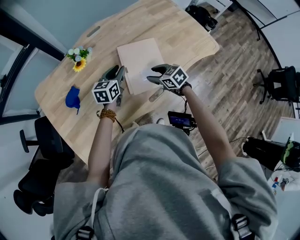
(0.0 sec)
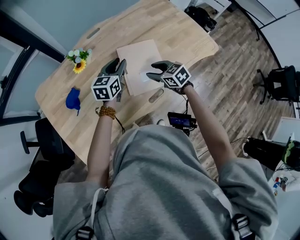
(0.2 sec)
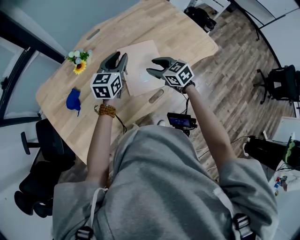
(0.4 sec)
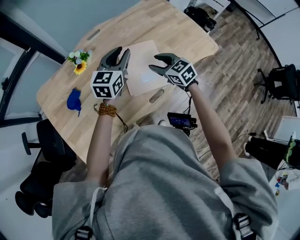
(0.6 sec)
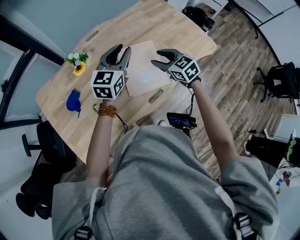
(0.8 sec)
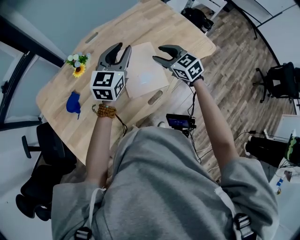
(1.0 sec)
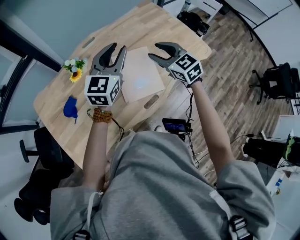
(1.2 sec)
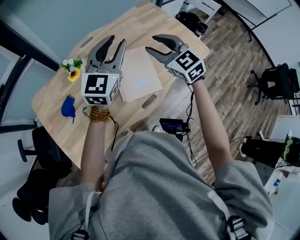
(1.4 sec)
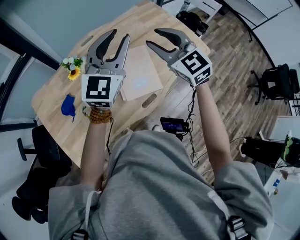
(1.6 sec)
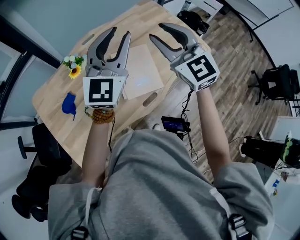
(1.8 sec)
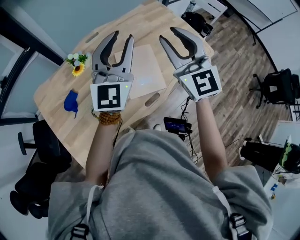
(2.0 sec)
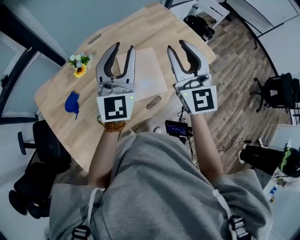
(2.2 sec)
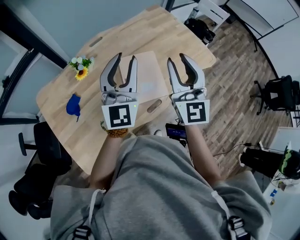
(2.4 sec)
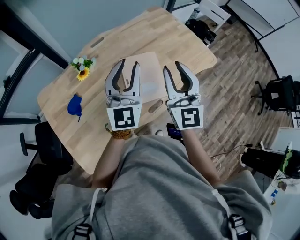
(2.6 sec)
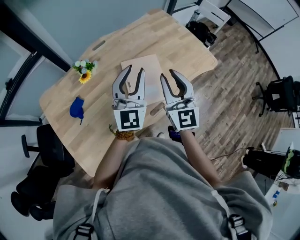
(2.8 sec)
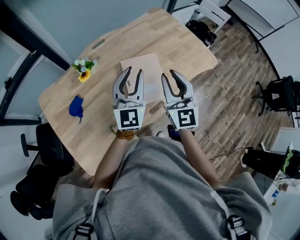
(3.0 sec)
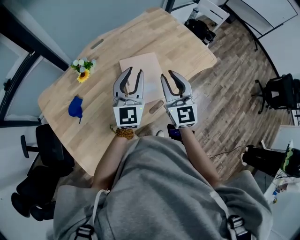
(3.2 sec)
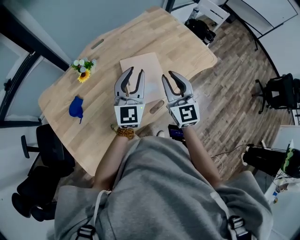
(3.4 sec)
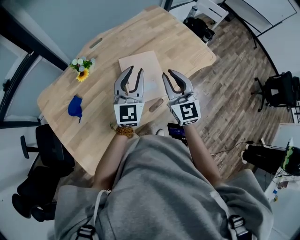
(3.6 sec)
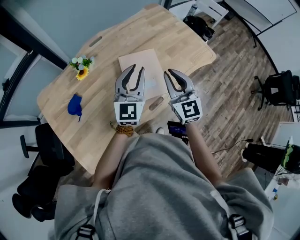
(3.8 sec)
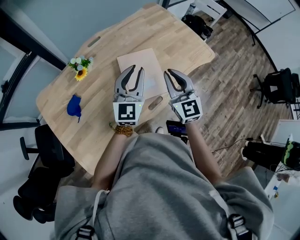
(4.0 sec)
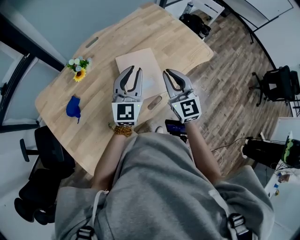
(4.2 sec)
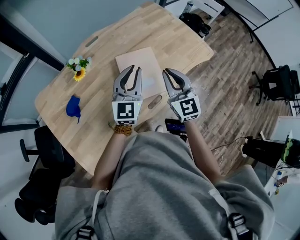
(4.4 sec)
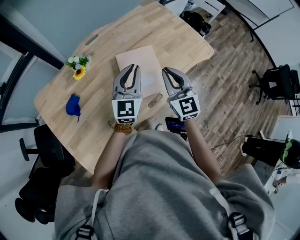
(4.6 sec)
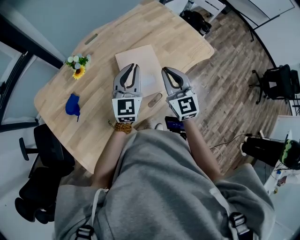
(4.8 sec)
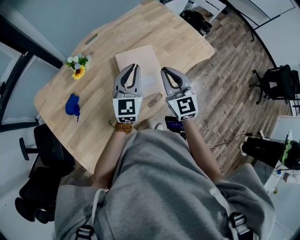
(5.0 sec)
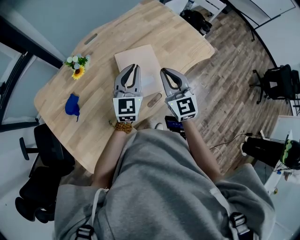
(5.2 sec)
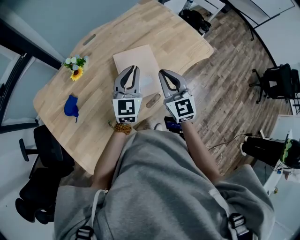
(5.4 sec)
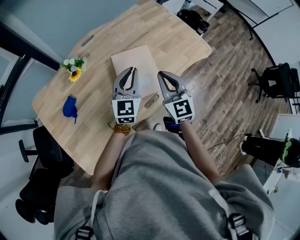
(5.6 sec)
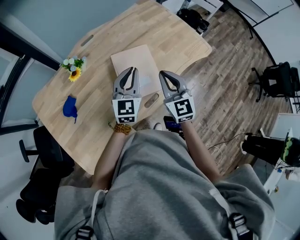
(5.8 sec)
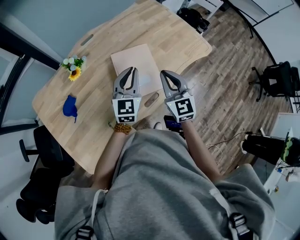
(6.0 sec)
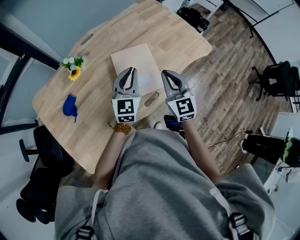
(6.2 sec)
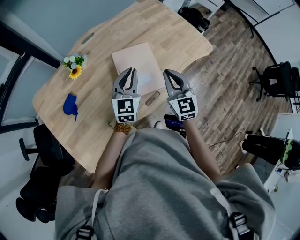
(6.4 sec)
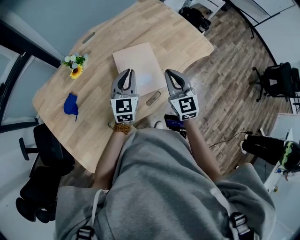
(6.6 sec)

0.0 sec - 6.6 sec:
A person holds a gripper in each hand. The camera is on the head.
0.0 sec - 1.6 sec: Both grippers travel together upward, roughly 30 cm. The left gripper points its fingers roughly 30 degrees further upward. The right gripper points its fingers about 30 degrees further upward.
1.6 sec - 3.2 sec: The left gripper travels downward by roughly 10 cm. The right gripper heads backward and downward, covering roughly 10 cm, and swivels some 30 degrees.
3.2 sec - 5.0 sec: The right gripper closes.
5.0 sec - 6.6 sec: The left gripper moves downward, about 5 cm.

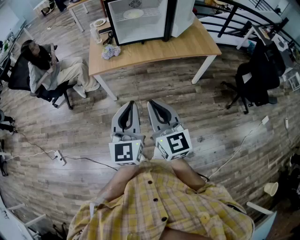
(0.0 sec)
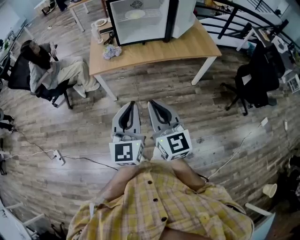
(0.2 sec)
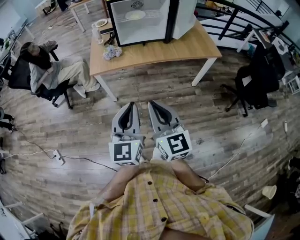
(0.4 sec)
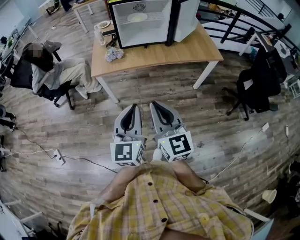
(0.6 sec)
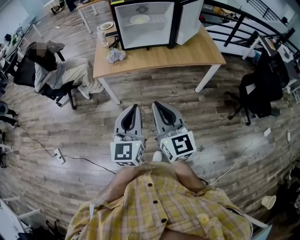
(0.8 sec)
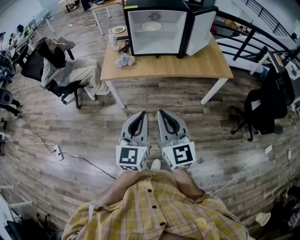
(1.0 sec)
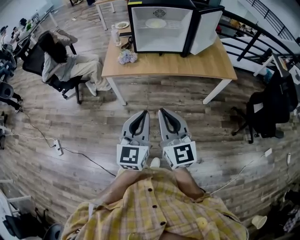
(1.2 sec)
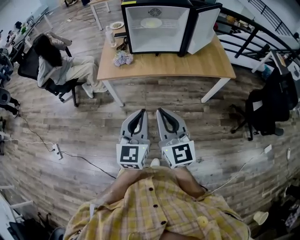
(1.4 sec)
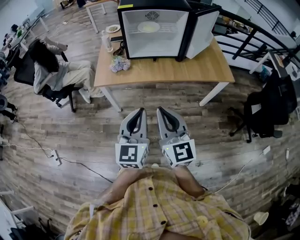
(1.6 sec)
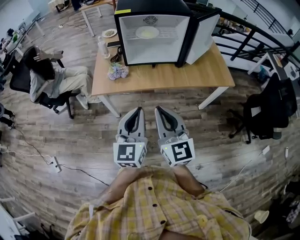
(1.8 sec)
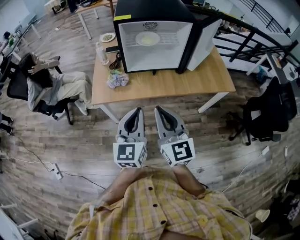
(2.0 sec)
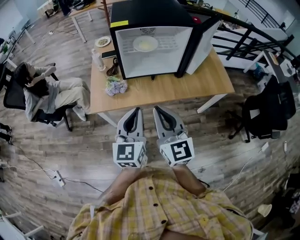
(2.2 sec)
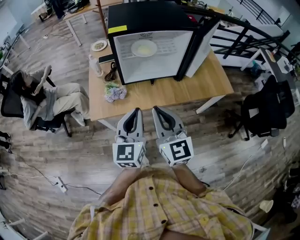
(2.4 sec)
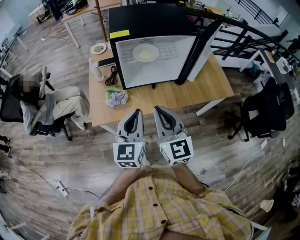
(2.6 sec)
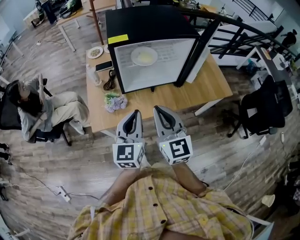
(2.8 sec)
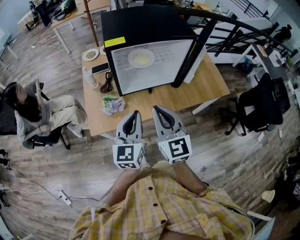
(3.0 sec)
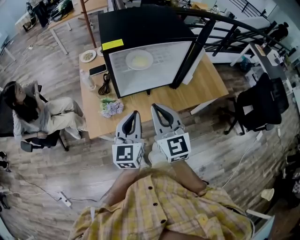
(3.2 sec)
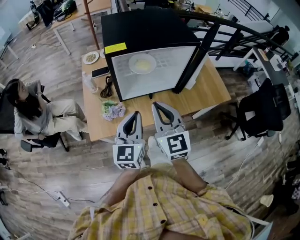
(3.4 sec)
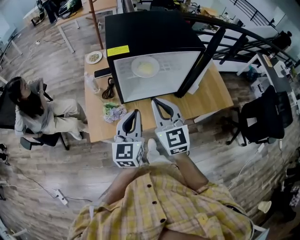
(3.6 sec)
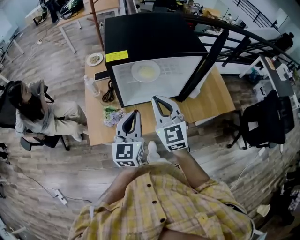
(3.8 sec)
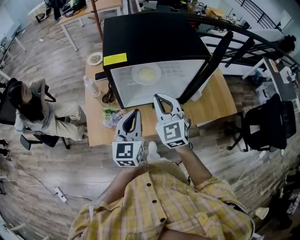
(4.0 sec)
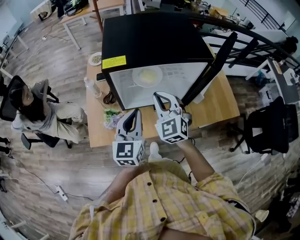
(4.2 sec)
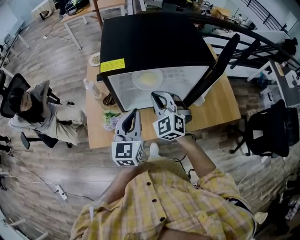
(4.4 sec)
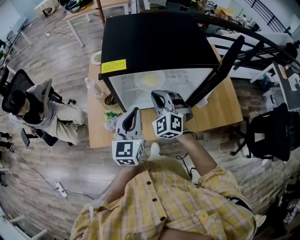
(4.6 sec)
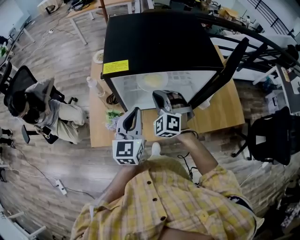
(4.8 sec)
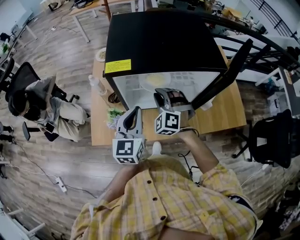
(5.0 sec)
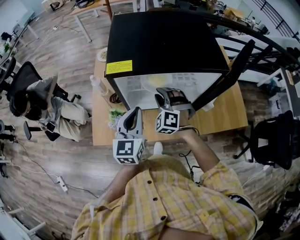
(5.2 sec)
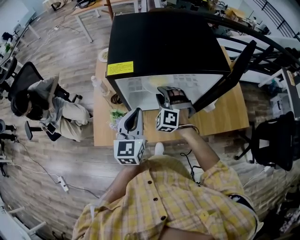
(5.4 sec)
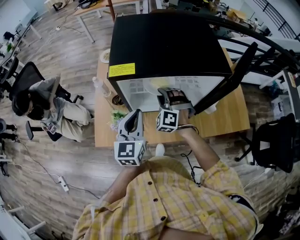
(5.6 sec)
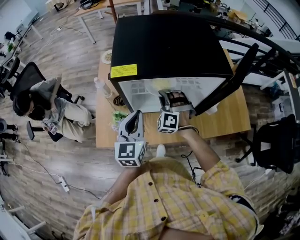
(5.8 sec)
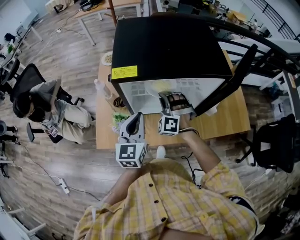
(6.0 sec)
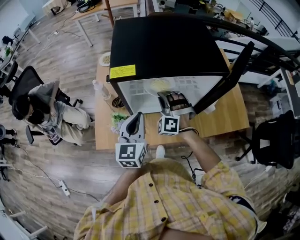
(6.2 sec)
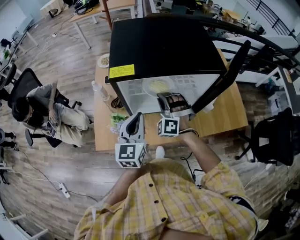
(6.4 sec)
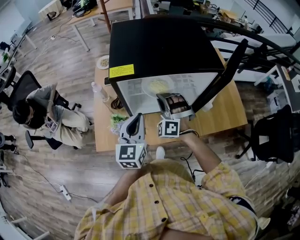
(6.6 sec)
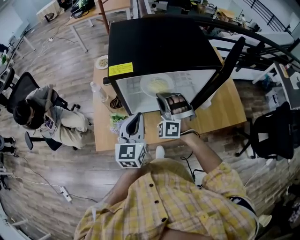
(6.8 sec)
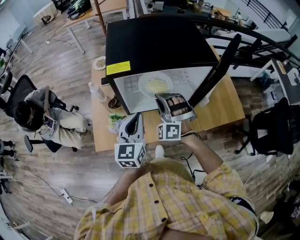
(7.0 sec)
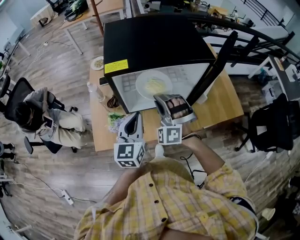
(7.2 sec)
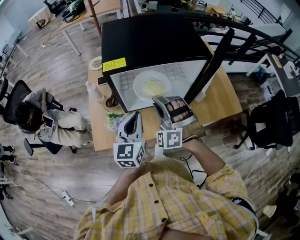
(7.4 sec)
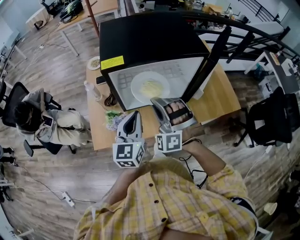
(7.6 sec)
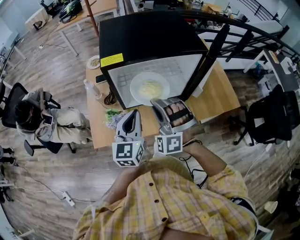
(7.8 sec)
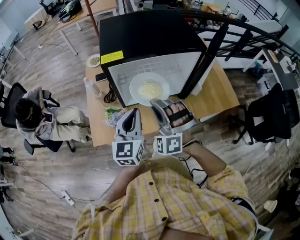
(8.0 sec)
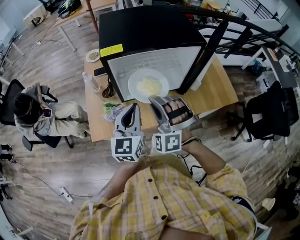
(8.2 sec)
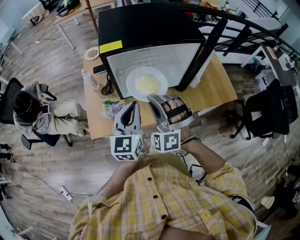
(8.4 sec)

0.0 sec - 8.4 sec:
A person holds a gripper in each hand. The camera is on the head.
0.0 sec - 1.4 sec: The grippers both shift forward by some 5 cm.
1.4 sec - 2.8 sec: Both grippers travel together forward, roughly 30 cm.
2.8 sec - 4.2 sec: Both grippers move forward, roughly 15 cm. The right gripper turns by some 30 degrees.
4.2 sec - 5.6 sec: The right gripper moves downward and forward, roughly 15 cm, turns by about 40 degrees, and opens. Meanwhile the left gripper changes place by roughly 5 cm.
5.6 sec - 7.0 sec: The right gripper shifts about 10 cm upward and backward.
7.0 sec - 8.4 sec: The left gripper travels backward by about 5 cm. Meanwhile the right gripper shifts about 15 cm backward and upward.

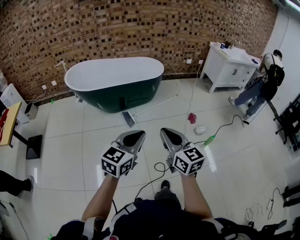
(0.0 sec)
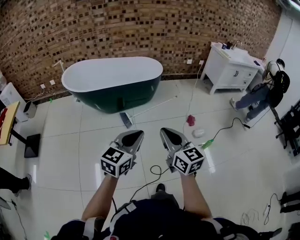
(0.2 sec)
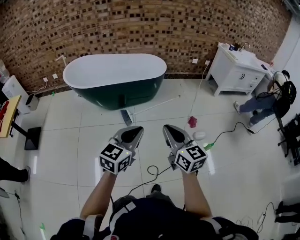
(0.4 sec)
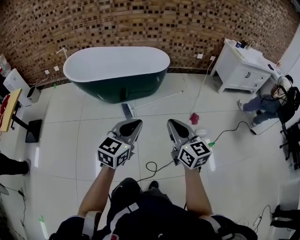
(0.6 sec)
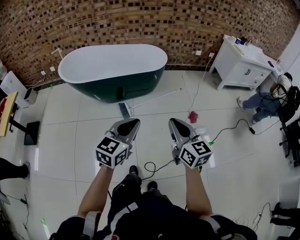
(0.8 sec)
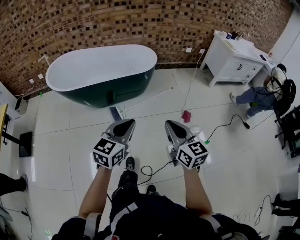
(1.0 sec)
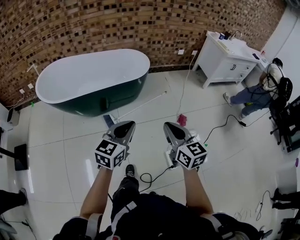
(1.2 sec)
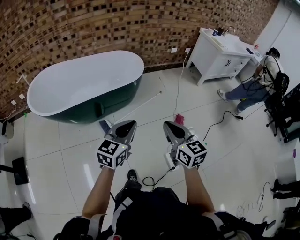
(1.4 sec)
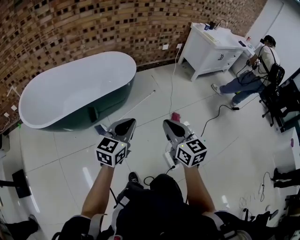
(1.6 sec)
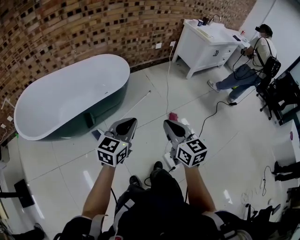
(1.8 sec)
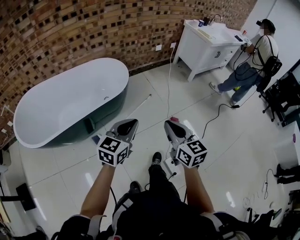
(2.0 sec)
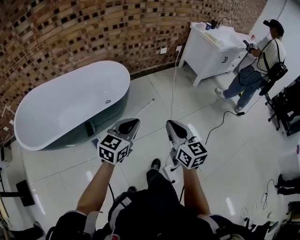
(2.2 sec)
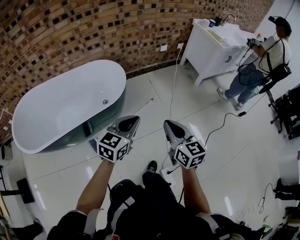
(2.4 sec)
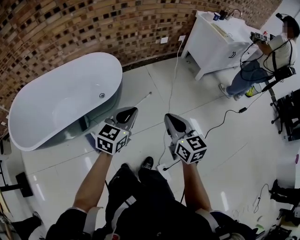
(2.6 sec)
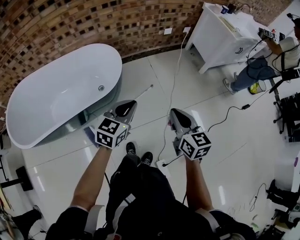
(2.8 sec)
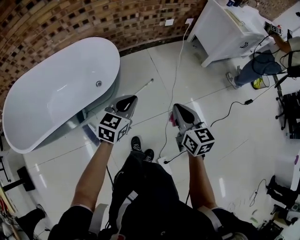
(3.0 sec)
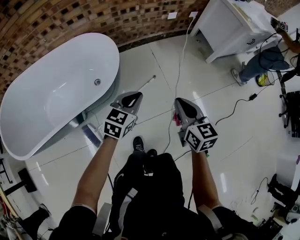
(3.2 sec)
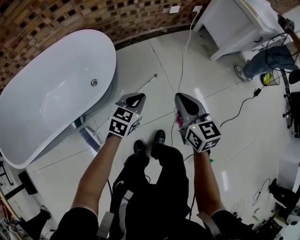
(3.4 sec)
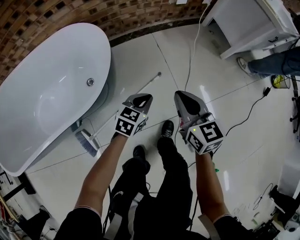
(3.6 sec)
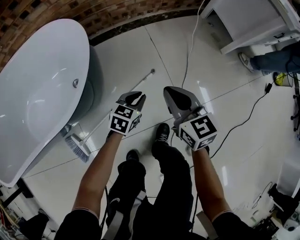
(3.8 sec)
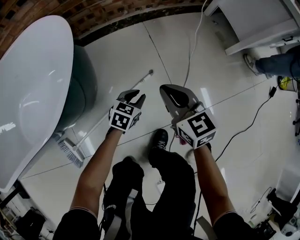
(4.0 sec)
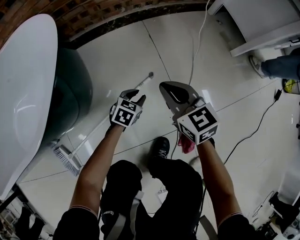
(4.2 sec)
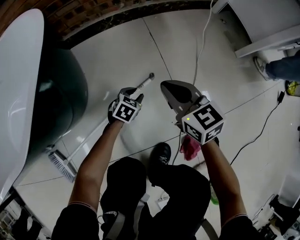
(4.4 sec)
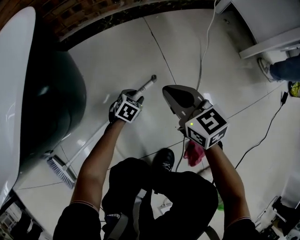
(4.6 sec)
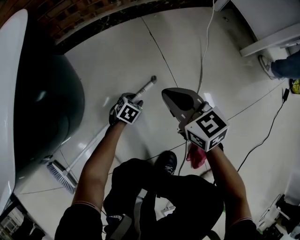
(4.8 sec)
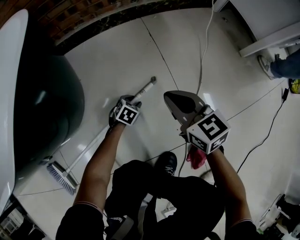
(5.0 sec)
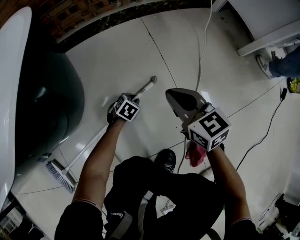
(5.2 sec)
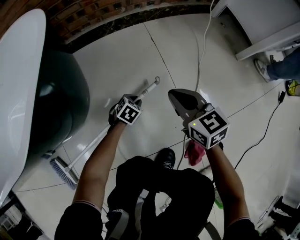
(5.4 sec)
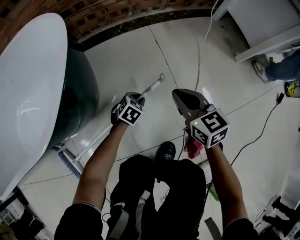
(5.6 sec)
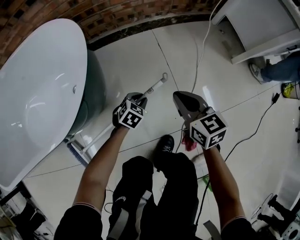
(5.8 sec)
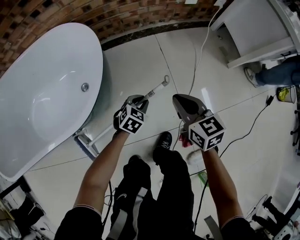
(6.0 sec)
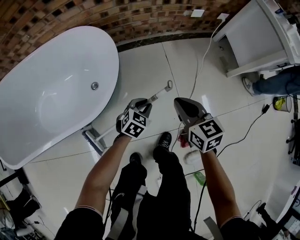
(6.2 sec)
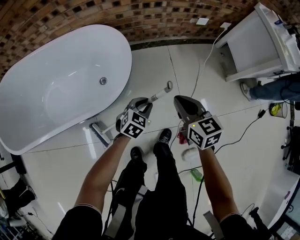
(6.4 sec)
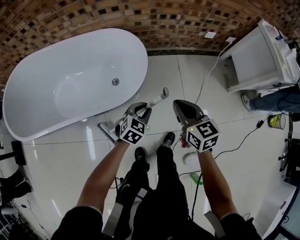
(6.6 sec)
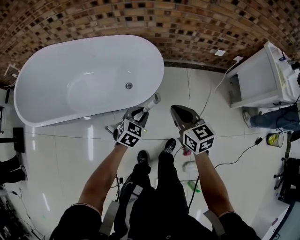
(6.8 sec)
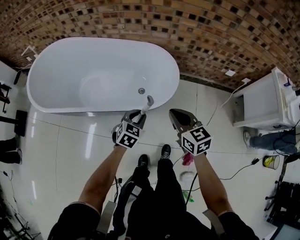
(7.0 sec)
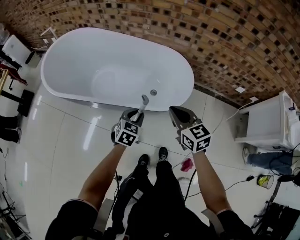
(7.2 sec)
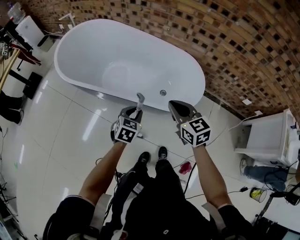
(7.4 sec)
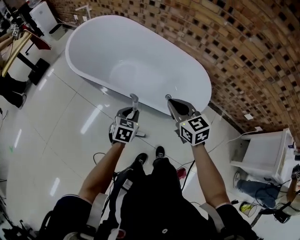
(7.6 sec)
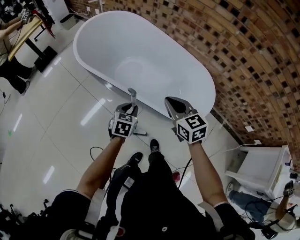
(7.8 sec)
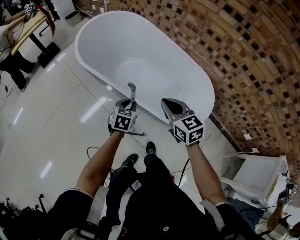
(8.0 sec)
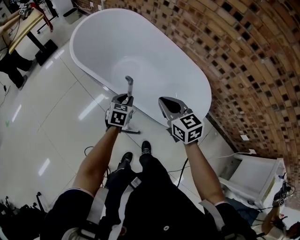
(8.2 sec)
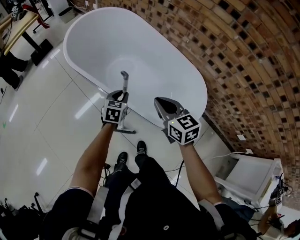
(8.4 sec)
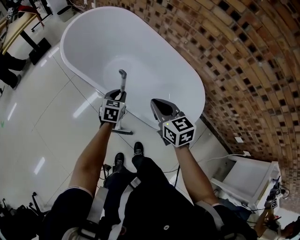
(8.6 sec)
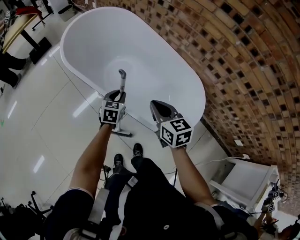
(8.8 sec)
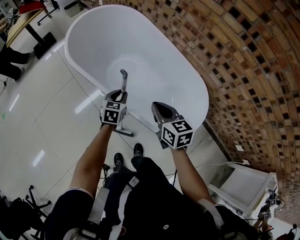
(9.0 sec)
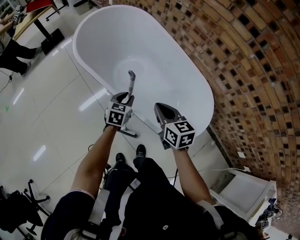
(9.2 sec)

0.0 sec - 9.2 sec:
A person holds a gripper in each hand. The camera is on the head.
0.0 sec - 1.6 sec: Both grippers are carried forward, roughly 40 cm.
1.6 sec - 3.0 sec: Both grippers are carried forward, some 40 cm.
3.0 sec - 4.6 sec: The left gripper heads downward, covering approximately 80 cm, tips its fingers downward by some 30 degrees, and opens. Meanwhile the right gripper is displaced downward and forward by about 60 cm, and turns by some 20 degrees.
4.6 sec - 6.2 sec: The two grippers go about 35 cm upward.
6.2 sec - 7.6 sec: The pair of grippers is taken roughly 50 cm. The right gripper turns by roughly 50 degrees. The left gripper rotates about 60 degrees.
7.6 sec - 9.2 sec: The right gripper shifts approximately 10 cm forward and downward, while the left gripper shifts some 15 cm forward.
